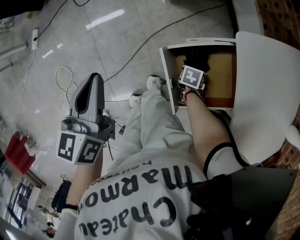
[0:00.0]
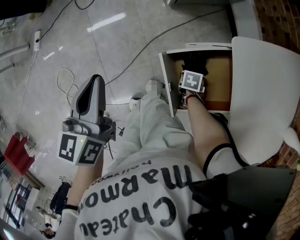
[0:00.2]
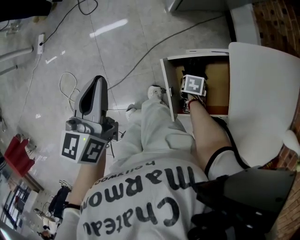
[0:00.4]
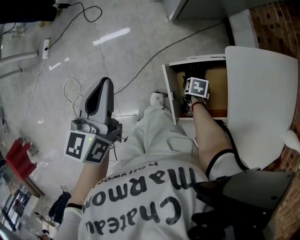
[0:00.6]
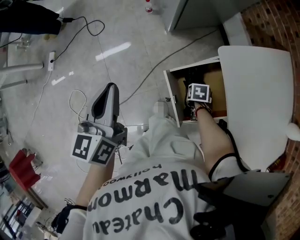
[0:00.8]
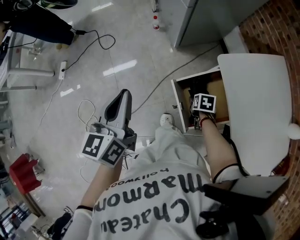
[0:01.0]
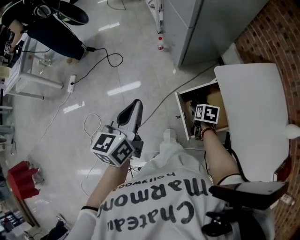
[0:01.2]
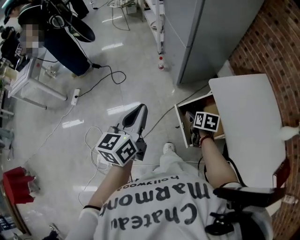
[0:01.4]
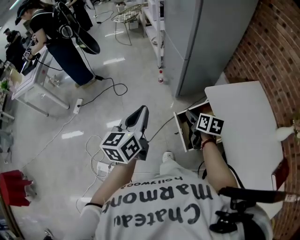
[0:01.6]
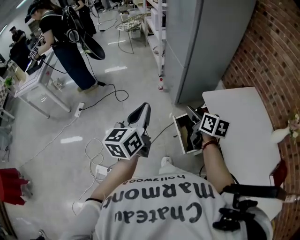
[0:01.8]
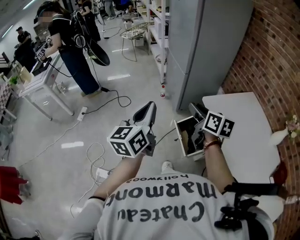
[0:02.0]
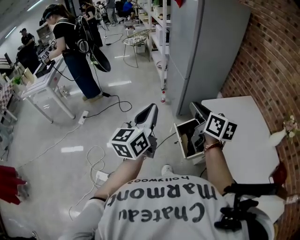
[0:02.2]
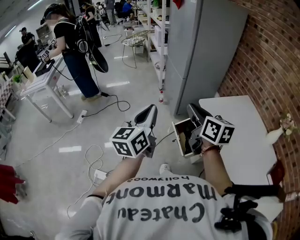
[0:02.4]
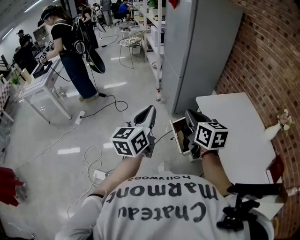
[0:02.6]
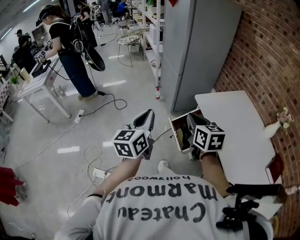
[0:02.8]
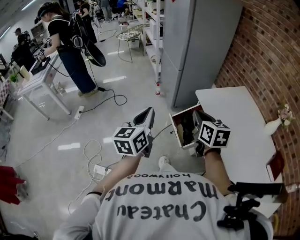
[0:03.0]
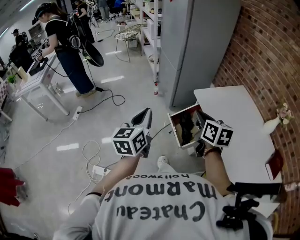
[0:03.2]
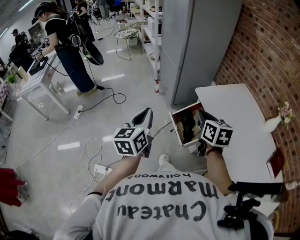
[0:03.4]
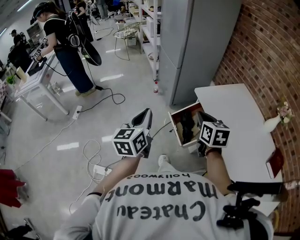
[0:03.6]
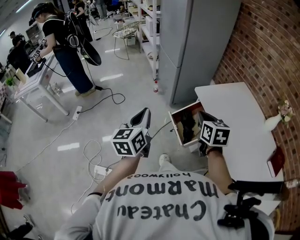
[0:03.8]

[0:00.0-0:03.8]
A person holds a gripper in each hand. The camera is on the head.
0:00.0 to 0:01.2: Both grippers travel together upward, about 15 cm. The right gripper changes its angle by some 30 degrees.
0:01.2 to 0:02.6: The right gripper goes approximately 40 cm upward and backward, points its fingers about 50 degrees further upward, and closes its fingers. Meanwhile the left gripper moves backward and upward, roughly 20 cm.
0:02.6 to 0:03.8: The left gripper is displaced downward by roughly 5 cm. Meanwhile the right gripper is displaced to the right and downward by some 10 cm.

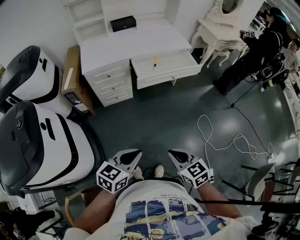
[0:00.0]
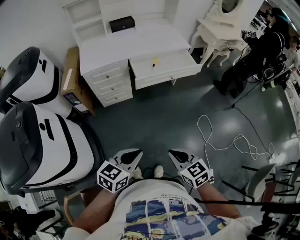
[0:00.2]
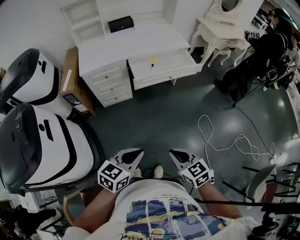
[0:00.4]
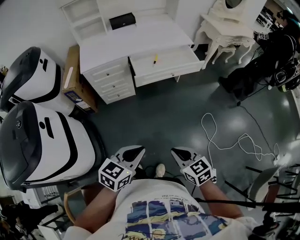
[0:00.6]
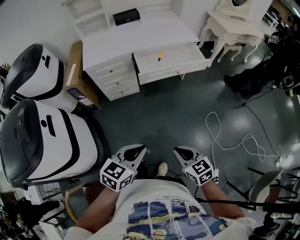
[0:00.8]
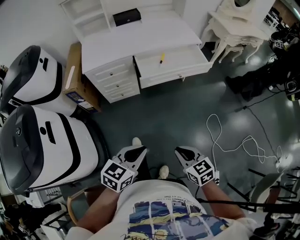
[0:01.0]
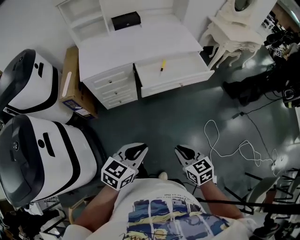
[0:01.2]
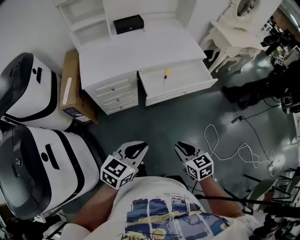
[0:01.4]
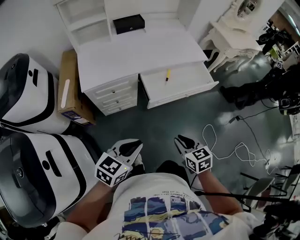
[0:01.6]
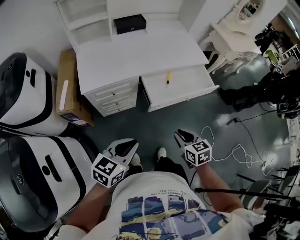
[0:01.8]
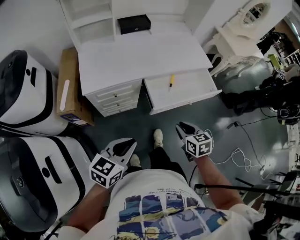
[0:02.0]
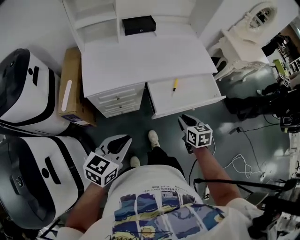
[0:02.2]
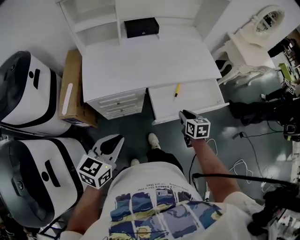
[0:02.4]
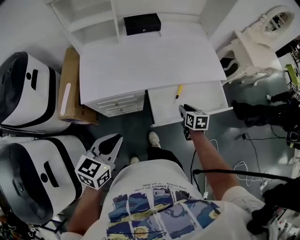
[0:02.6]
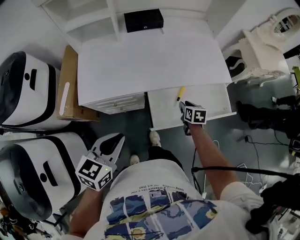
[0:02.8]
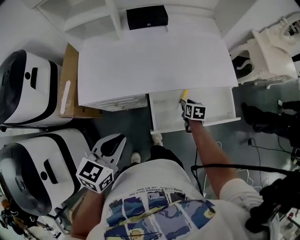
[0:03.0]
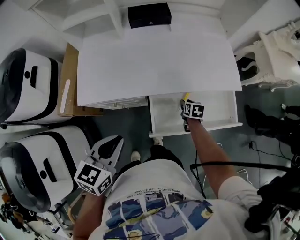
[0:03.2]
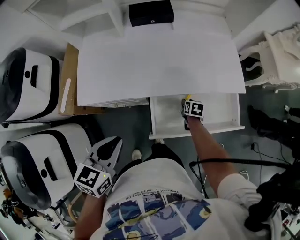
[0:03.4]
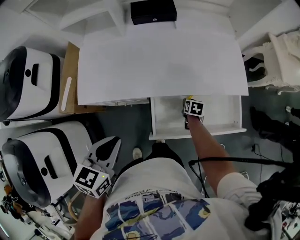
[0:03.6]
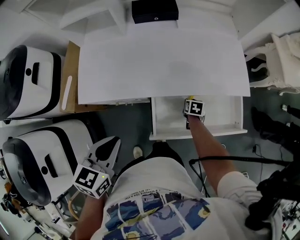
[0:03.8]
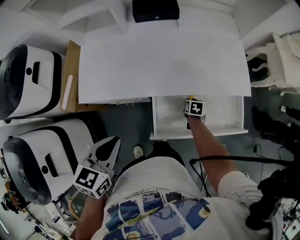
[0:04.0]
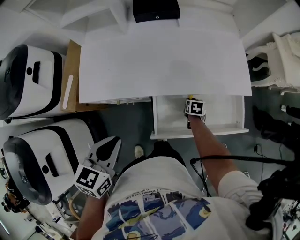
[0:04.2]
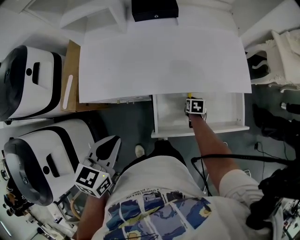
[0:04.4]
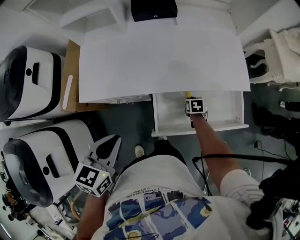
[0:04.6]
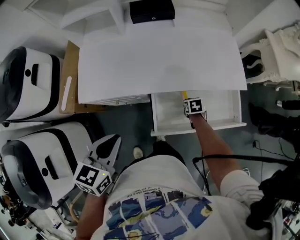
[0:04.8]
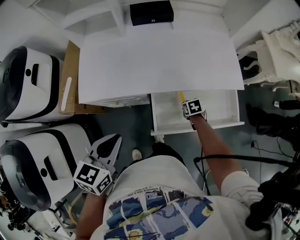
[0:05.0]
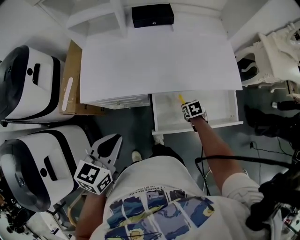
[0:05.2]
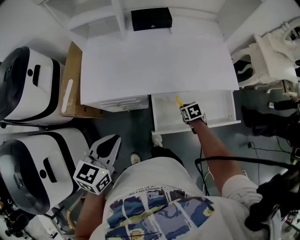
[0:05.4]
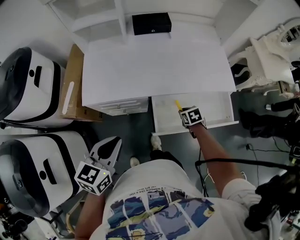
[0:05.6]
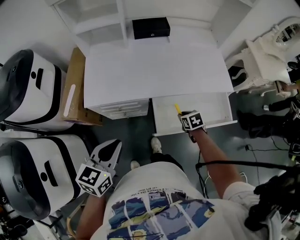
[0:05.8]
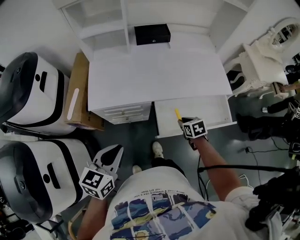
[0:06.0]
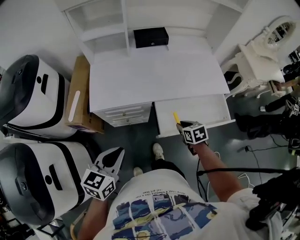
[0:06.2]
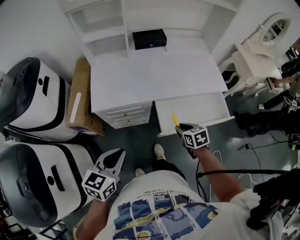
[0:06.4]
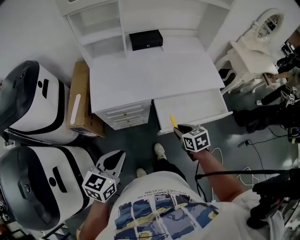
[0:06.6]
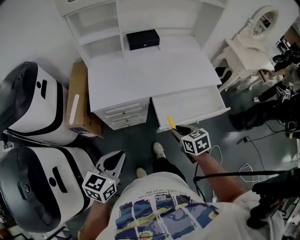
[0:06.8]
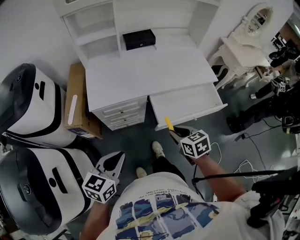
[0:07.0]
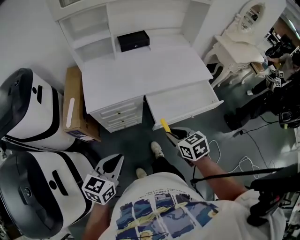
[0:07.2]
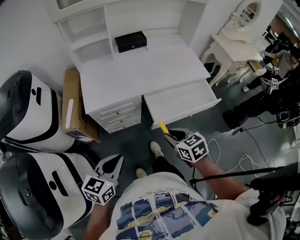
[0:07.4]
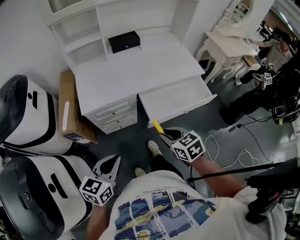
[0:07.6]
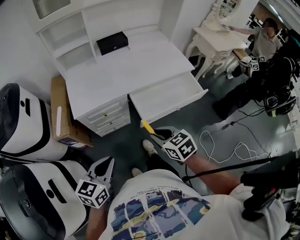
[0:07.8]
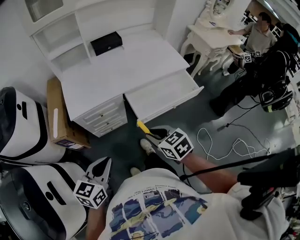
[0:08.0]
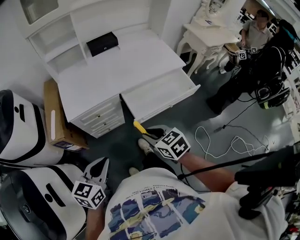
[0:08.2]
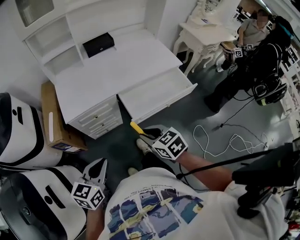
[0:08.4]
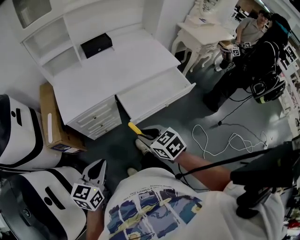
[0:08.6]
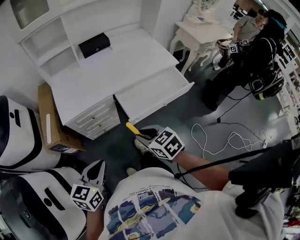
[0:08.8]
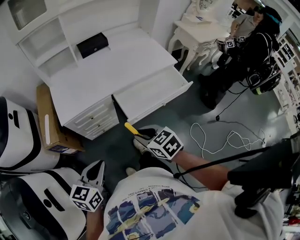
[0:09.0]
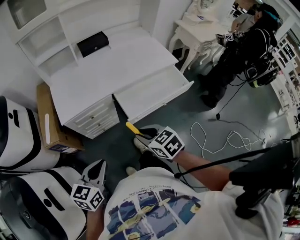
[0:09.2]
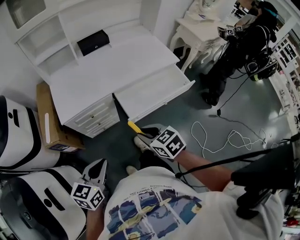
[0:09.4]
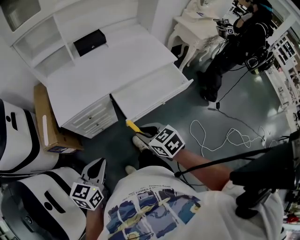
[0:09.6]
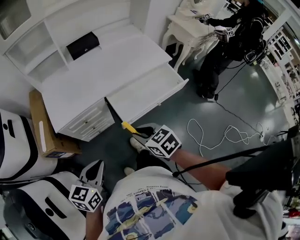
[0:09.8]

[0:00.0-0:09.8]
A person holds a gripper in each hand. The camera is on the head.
0:00.0 to 0:01.4: Both grippers travel together forward, roughly 20 cm.
0:01.4 to 0:02.8: The right gripper is displaced forward by roughly 40 cm, and swivels some 20 degrees; the left gripper is displaced forward and to the left by about 25 cm, and swivels roughly 20 degrees.
0:02.8 to 0:04.2: The left gripper moves forward, some 5 cm. Meanwhile the right gripper goes some 15 cm downward and forward.
0:04.2 to 0:05.6: The left gripper travels backward by some 5 cm. The right gripper moves upward and backward, approximately 10 cm, and turns by roughly 20 degrees.
0:05.6 to 0:07.0: The left gripper is displaced backward and to the left by about 15 cm; the right gripper shifts some 30 cm upward, backward and to the left, and swivels roughly 20 degrees.
0:07.0 to 0:08.4: The right gripper heads backward, covering approximately 5 cm.
0:08.4 to 0:09.8: The grippers move only a little.

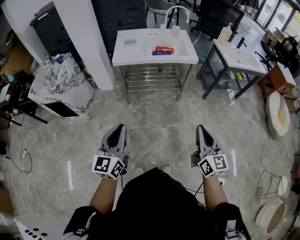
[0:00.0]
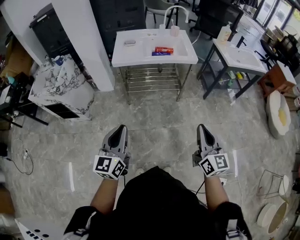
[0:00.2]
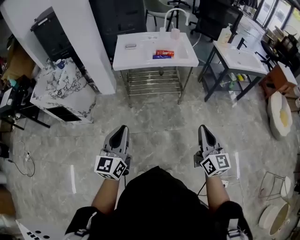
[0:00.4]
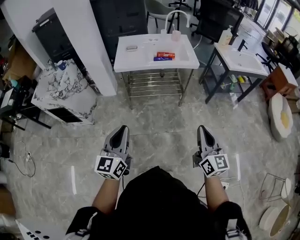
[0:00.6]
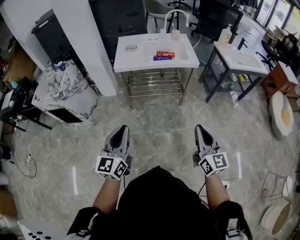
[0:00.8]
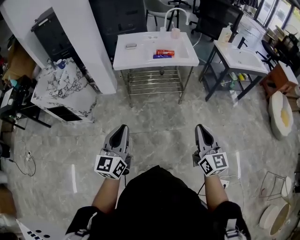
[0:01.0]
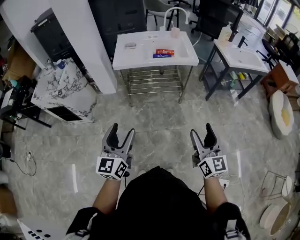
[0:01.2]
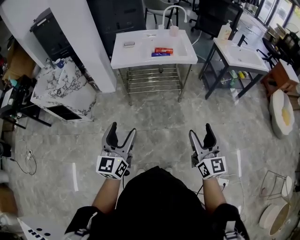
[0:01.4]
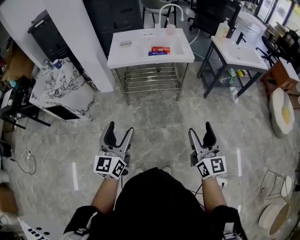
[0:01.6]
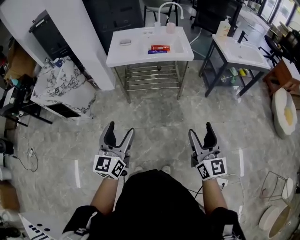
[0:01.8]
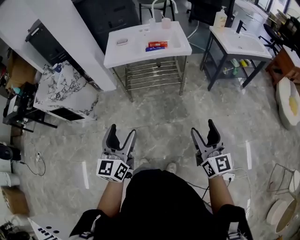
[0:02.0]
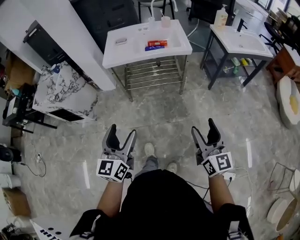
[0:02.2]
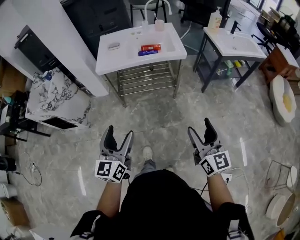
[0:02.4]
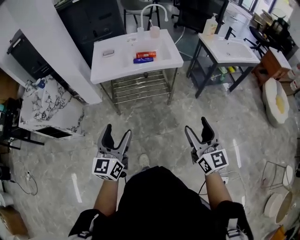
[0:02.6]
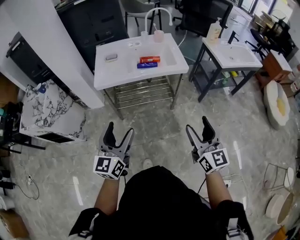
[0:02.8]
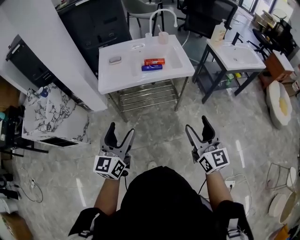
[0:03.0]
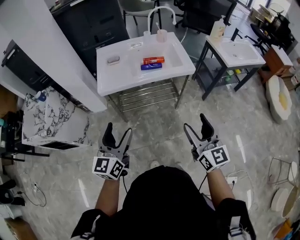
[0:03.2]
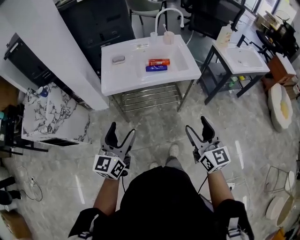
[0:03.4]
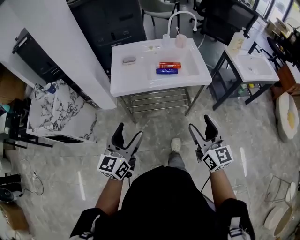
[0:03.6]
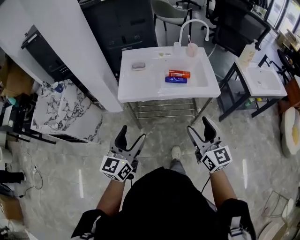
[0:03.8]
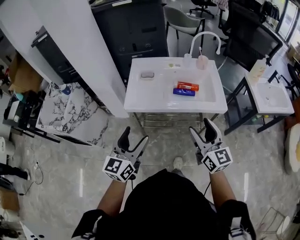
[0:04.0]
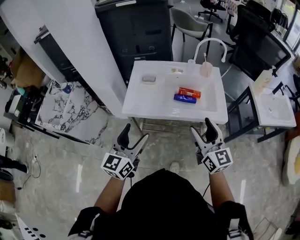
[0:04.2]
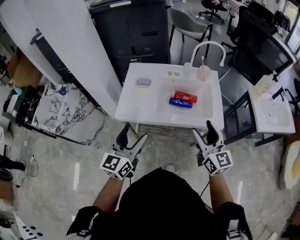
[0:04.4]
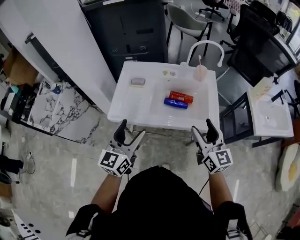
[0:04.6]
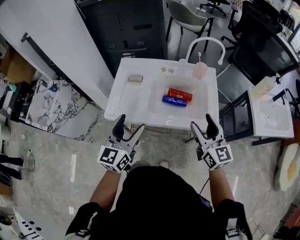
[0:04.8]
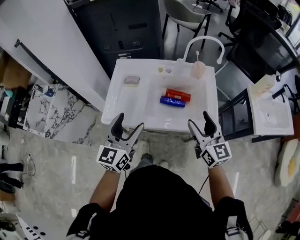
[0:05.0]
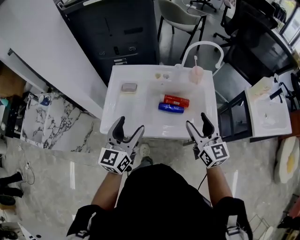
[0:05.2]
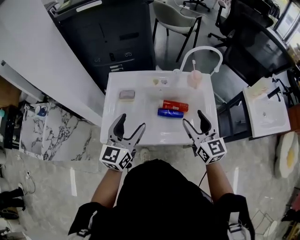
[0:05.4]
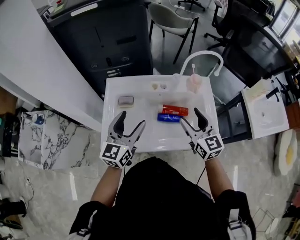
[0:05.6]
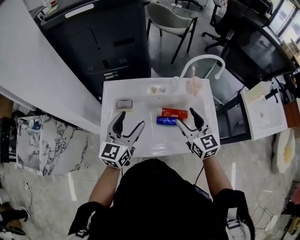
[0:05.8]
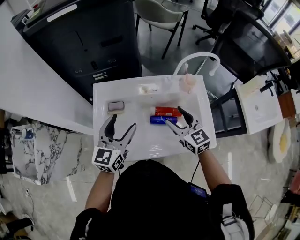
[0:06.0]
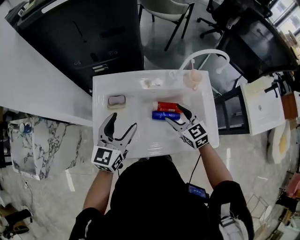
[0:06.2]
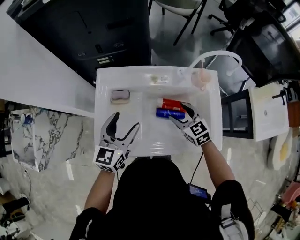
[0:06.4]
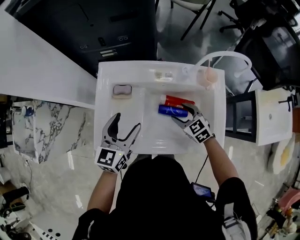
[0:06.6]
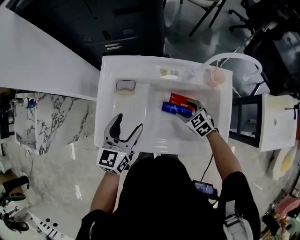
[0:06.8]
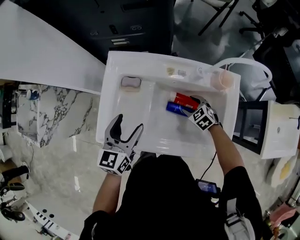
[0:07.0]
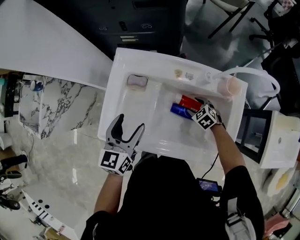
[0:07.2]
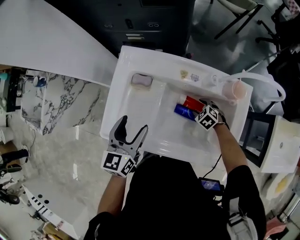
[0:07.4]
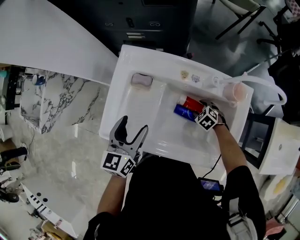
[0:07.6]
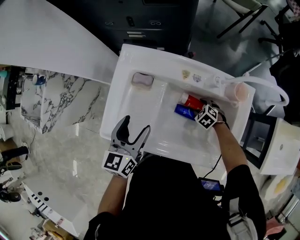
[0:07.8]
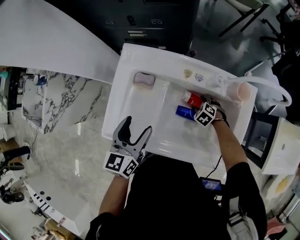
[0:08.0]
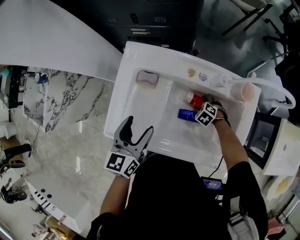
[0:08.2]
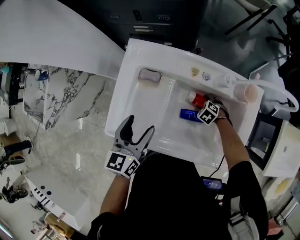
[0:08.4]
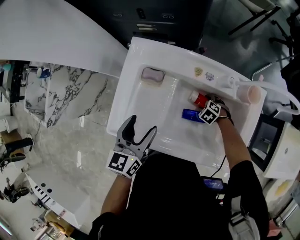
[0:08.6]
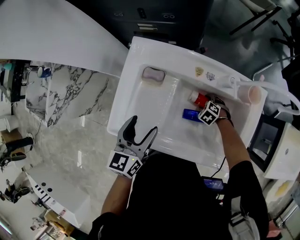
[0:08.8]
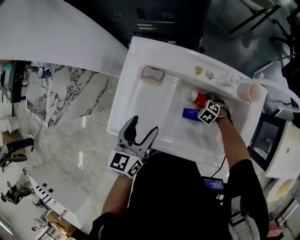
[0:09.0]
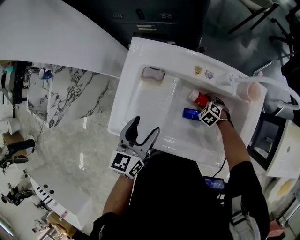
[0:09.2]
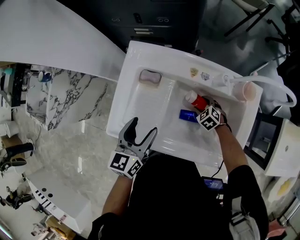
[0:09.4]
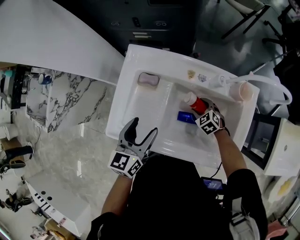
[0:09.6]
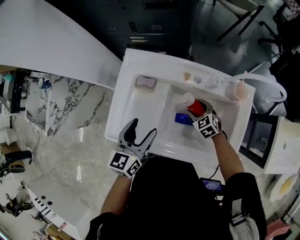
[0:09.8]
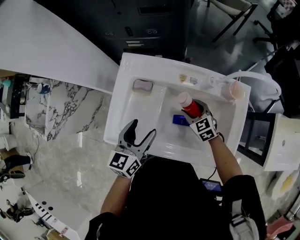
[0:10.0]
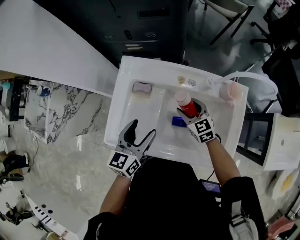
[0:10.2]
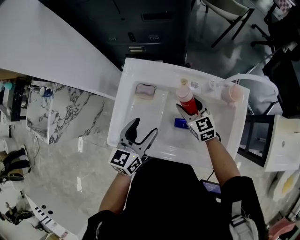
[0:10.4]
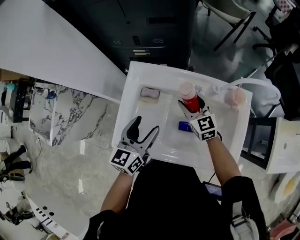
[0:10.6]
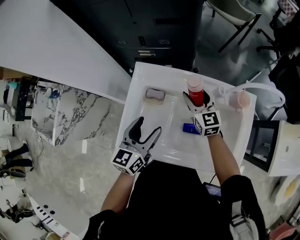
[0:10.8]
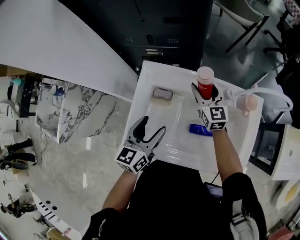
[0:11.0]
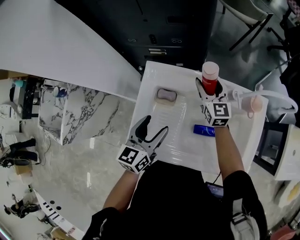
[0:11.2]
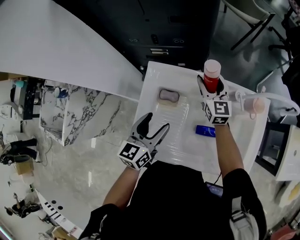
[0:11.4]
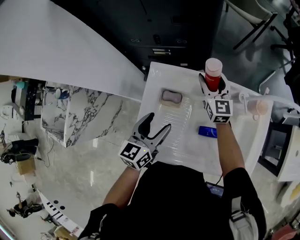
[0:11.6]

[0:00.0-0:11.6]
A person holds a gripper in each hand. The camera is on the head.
0:00.0 to 0:01.4: The left gripper opens. The right gripper opens up.
0:01.4 to 0:02.8: The grippers both shift forward by approximately 15 cm.
0:02.8 to 0:04.4: Both grippers travel together forward, some 30 cm.
0:04.4 to 0:05.8: Both grippers move forward, roughly 25 cm.
0:05.8 to 0:07.2: The left gripper shifts roughly 10 cm downward, and changes its angle by some 30 degrees; the right gripper travels downward by approximately 30 cm, and tilts its fingers some 50 degrees downward.
0:07.2 to 0:08.8: The right gripper moves downward, about 10 cm, and rotates roughly 20 degrees.
0:08.8 to 0:10.2: The right gripper heads upward, covering some 20 cm, and angles its fingers upward, by some 50 degrees.
0:10.2 to 0:11.6: The left gripper heads forward and to the left, covering about 10 cm; the right gripper is displaced forward and upward by about 20 cm, and rotates roughly 30 degrees.
